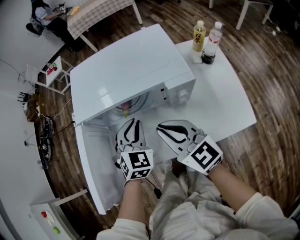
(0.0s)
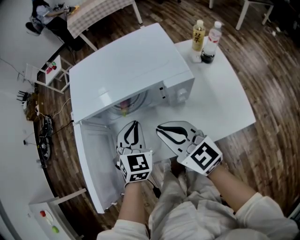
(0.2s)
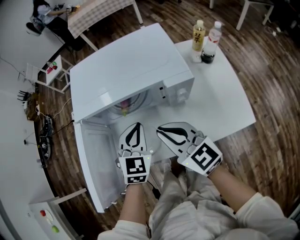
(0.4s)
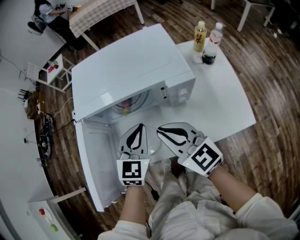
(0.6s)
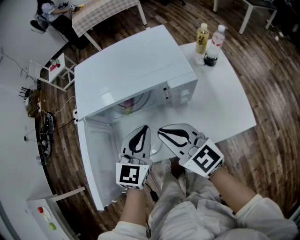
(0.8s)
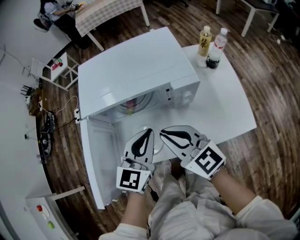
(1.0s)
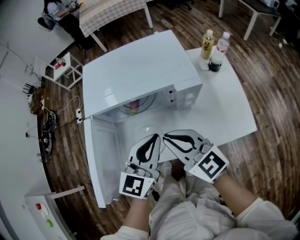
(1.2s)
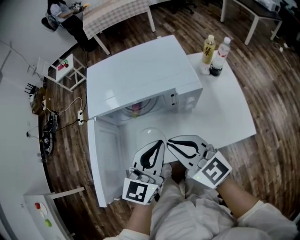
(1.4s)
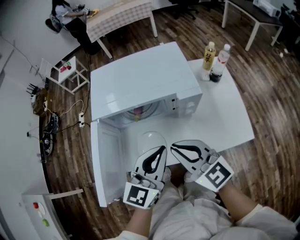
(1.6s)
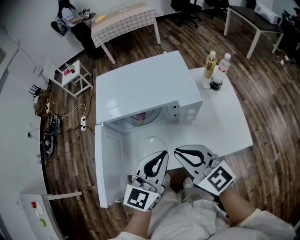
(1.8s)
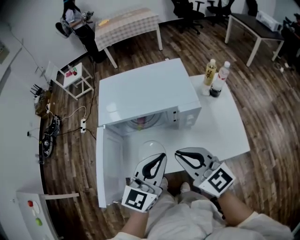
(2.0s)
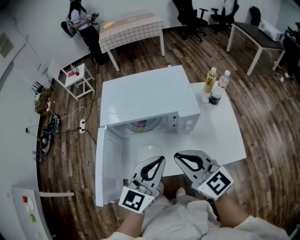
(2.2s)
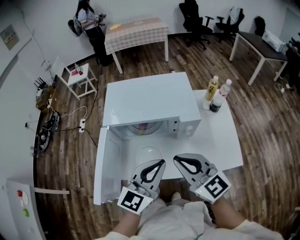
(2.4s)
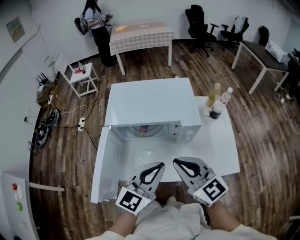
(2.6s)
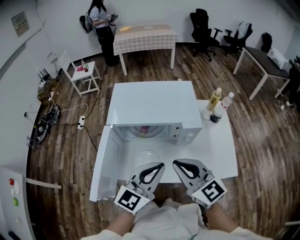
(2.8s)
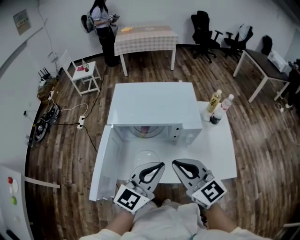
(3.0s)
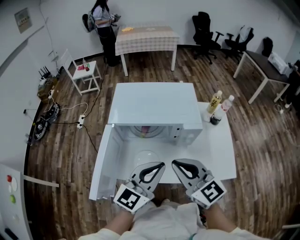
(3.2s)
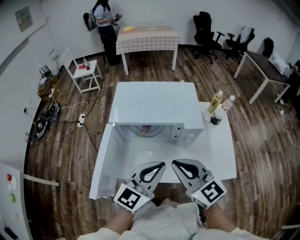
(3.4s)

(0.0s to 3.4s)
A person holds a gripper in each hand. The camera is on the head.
0.0s - 1.6s: The right gripper shifts approximately 5 cm backward. The left gripper goes approximately 15 cm backward and upward, and swivels about 40 degrees.
1.6s - 3.4s: The right gripper heads upward, covering about 5 cm. Meanwhile the left gripper changes place by approximately 5 cm.

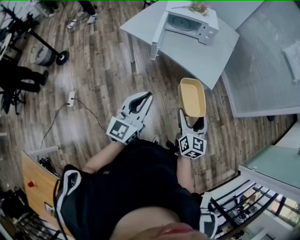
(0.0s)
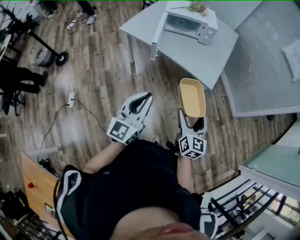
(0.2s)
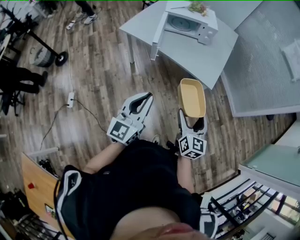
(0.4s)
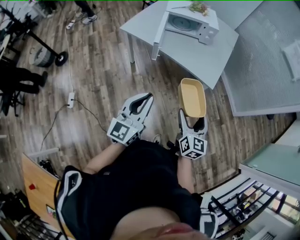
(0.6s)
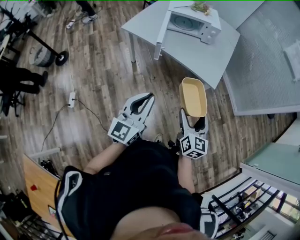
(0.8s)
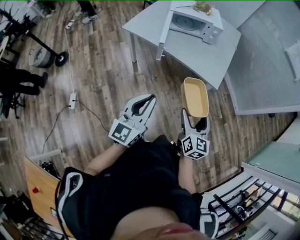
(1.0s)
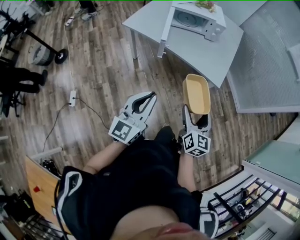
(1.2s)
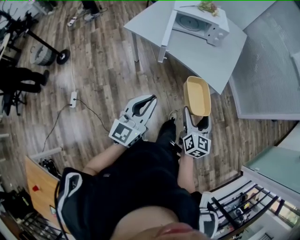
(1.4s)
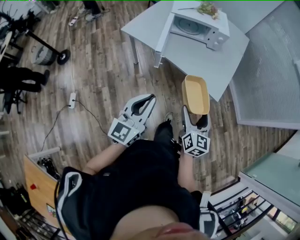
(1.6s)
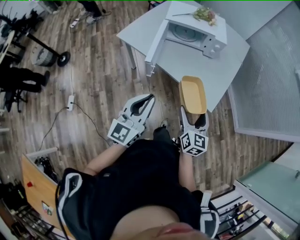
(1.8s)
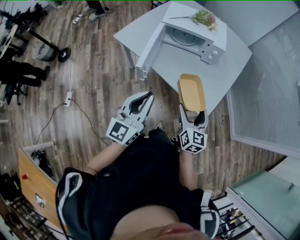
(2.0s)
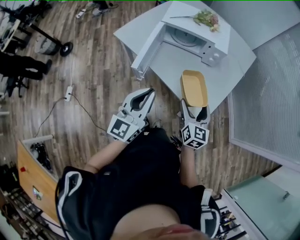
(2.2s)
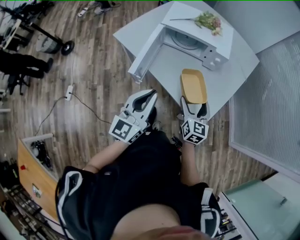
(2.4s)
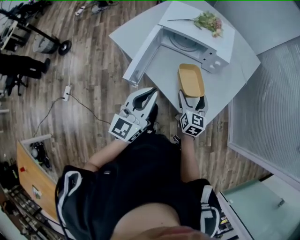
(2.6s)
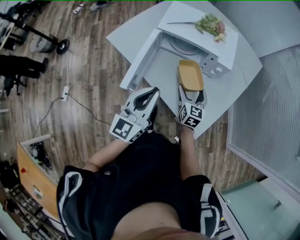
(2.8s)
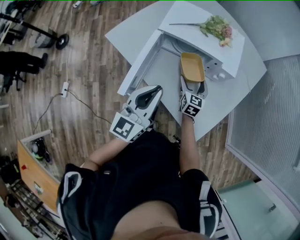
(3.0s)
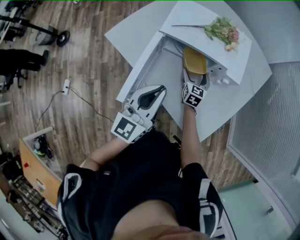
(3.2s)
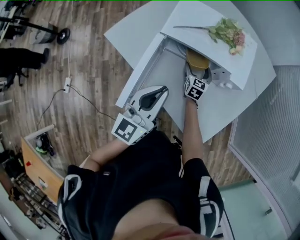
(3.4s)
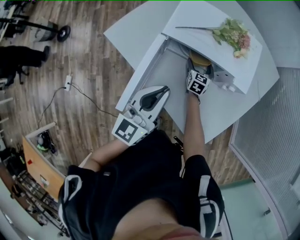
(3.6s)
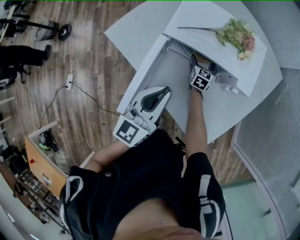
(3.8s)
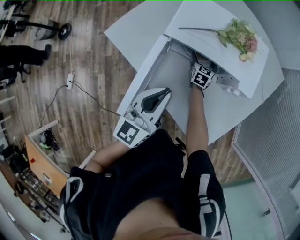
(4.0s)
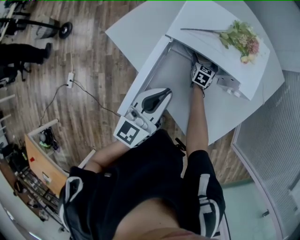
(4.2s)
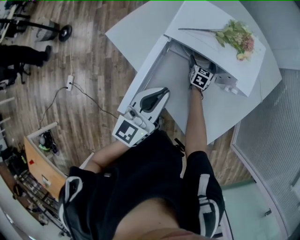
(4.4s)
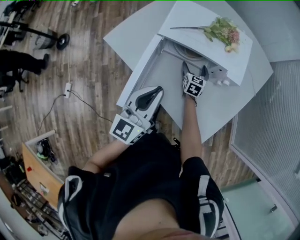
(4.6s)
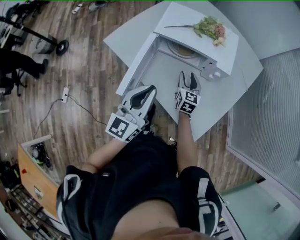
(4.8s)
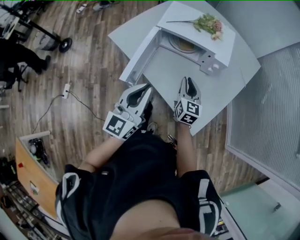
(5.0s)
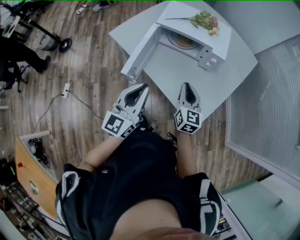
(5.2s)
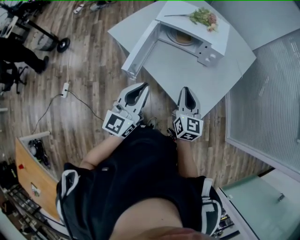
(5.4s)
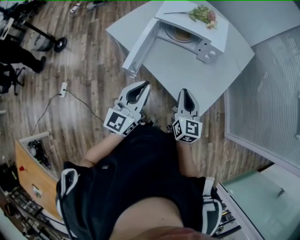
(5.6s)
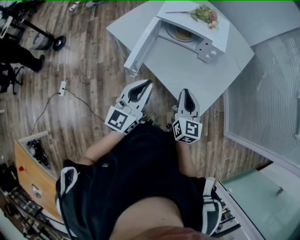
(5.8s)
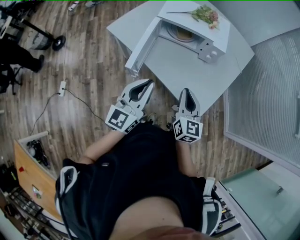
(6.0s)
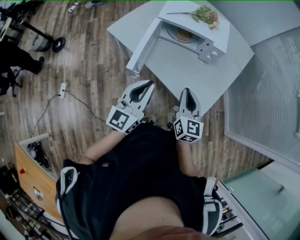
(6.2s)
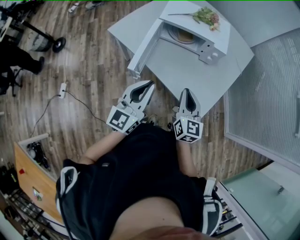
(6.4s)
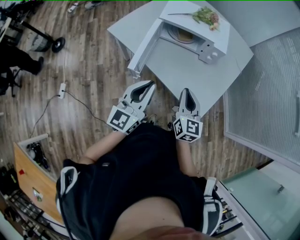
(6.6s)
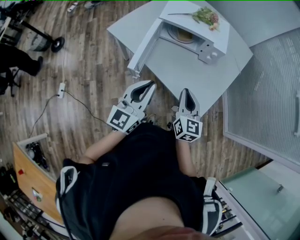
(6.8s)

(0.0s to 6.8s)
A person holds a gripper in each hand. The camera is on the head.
0.0s - 1.4s: The right gripper shifts roughly 10 cm forward and to the left, while the left gripper shifts roughly 5 cm to the left and forward.
1.4s - 2.8s: The two grippers travel together, forward, approximately 50 cm. The right gripper turns by roughly 20 degrees.
2.8s - 4.0s: The left gripper heads forward and downward, covering about 15 cm, while the right gripper is displaced forward and downward by about 35 cm.
4.0s - 5.4s: The right gripper heads backward and upward, covering roughly 50 cm, rotates about 30 degrees, and closes. Meanwhile the left gripper is displaced backward by some 25 cm.
5.4s - 6.8s: The grippers stay close to where they were, moving slightly.

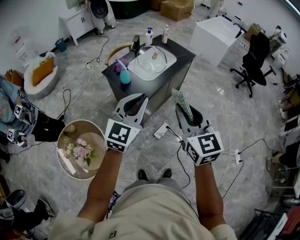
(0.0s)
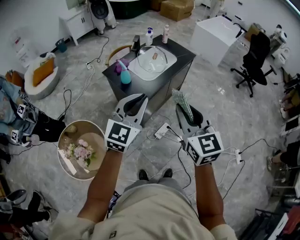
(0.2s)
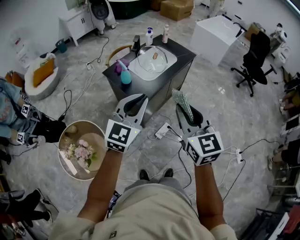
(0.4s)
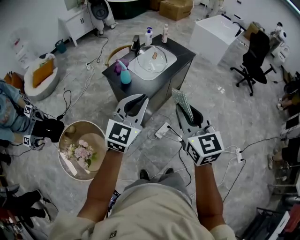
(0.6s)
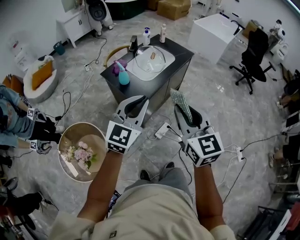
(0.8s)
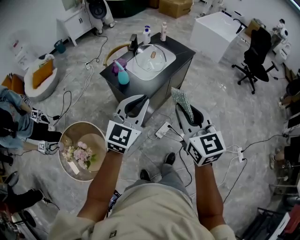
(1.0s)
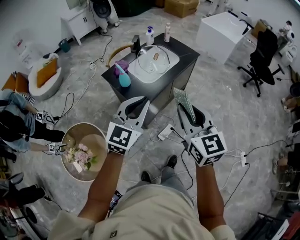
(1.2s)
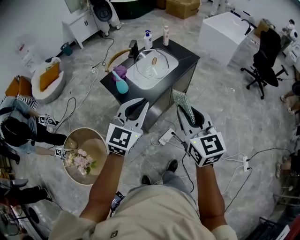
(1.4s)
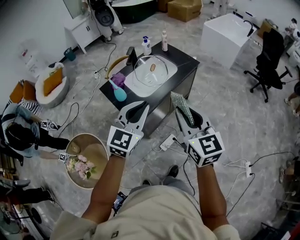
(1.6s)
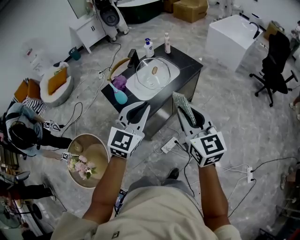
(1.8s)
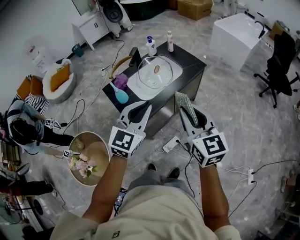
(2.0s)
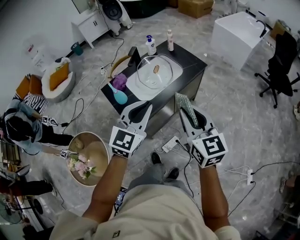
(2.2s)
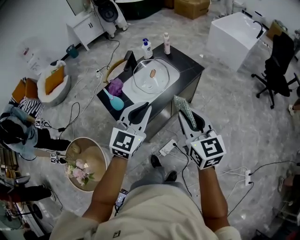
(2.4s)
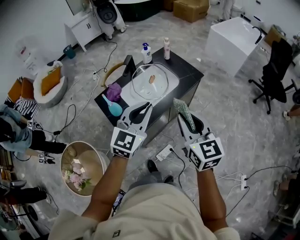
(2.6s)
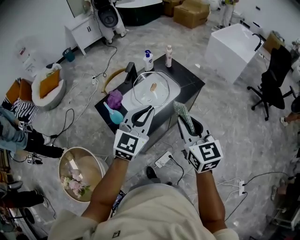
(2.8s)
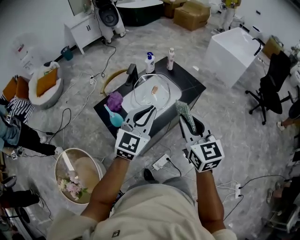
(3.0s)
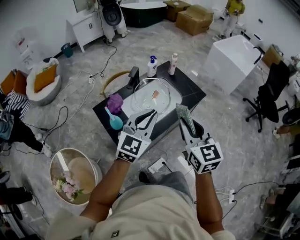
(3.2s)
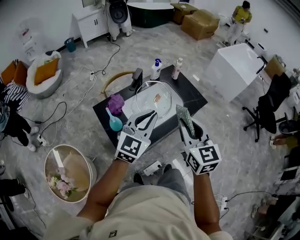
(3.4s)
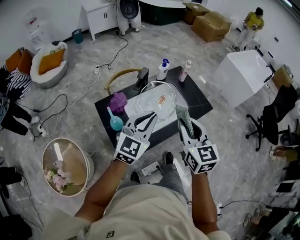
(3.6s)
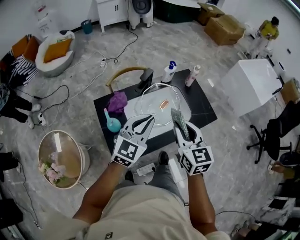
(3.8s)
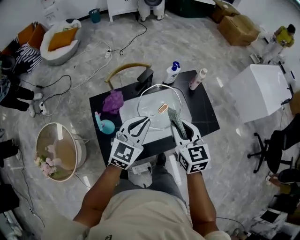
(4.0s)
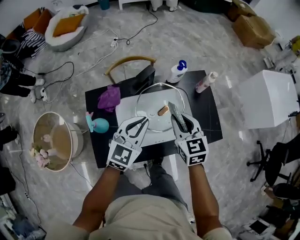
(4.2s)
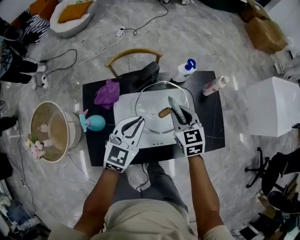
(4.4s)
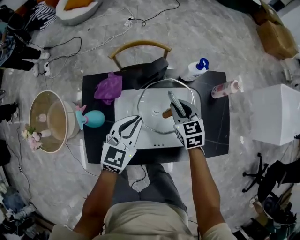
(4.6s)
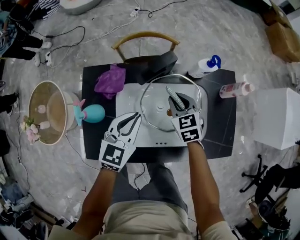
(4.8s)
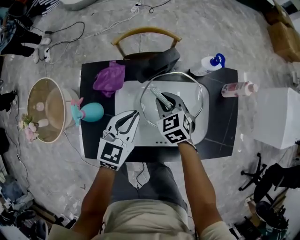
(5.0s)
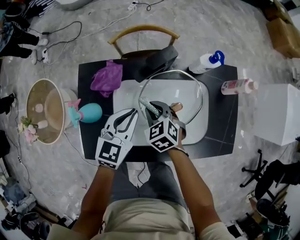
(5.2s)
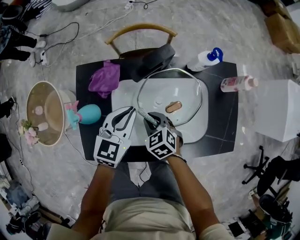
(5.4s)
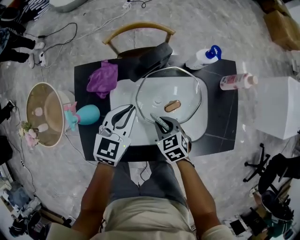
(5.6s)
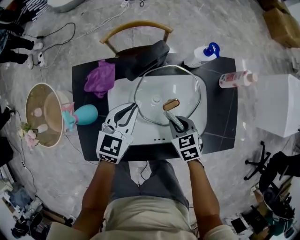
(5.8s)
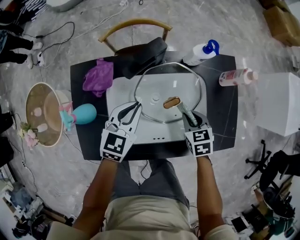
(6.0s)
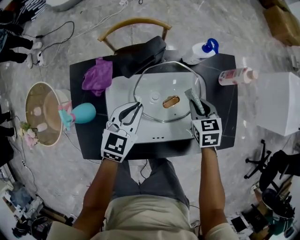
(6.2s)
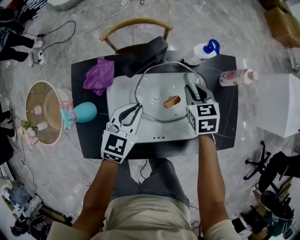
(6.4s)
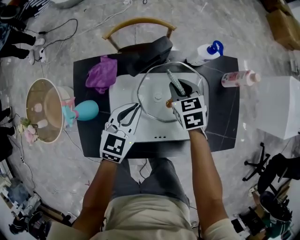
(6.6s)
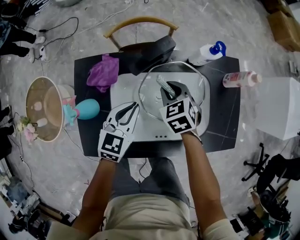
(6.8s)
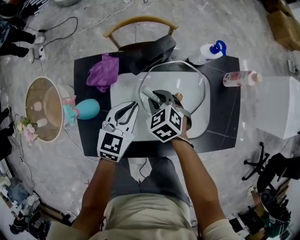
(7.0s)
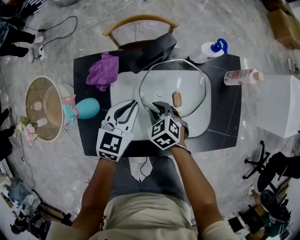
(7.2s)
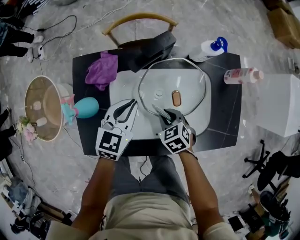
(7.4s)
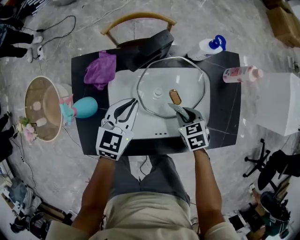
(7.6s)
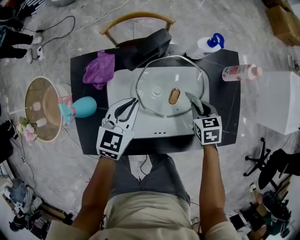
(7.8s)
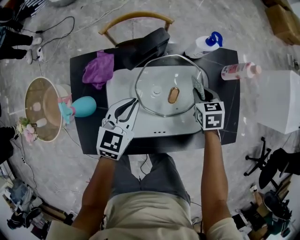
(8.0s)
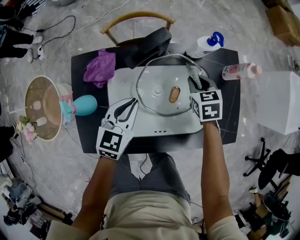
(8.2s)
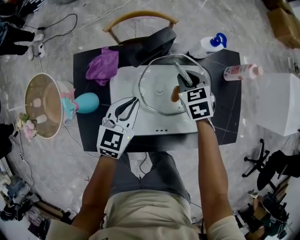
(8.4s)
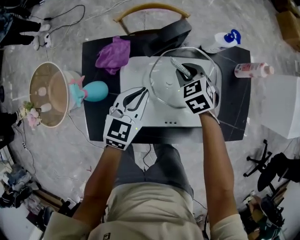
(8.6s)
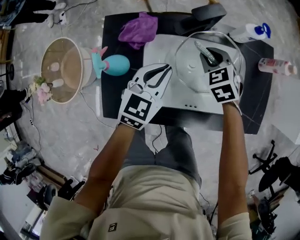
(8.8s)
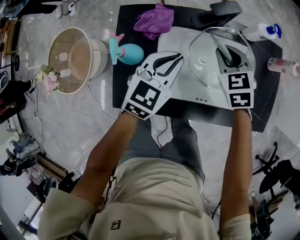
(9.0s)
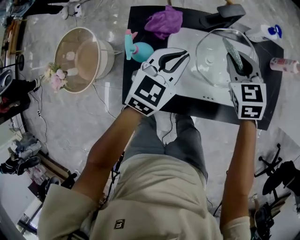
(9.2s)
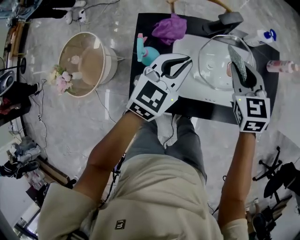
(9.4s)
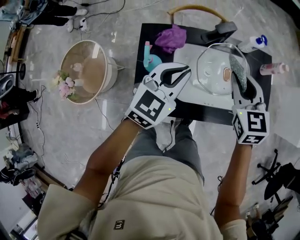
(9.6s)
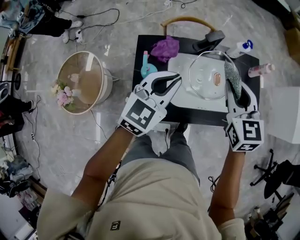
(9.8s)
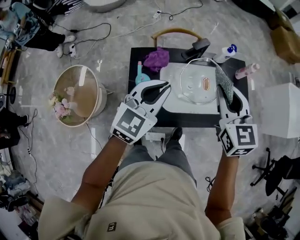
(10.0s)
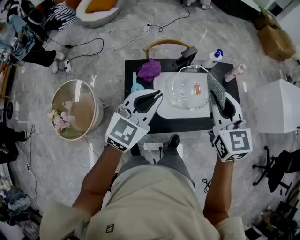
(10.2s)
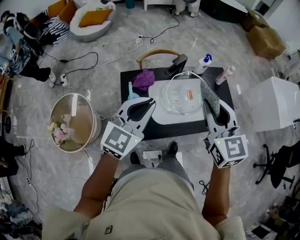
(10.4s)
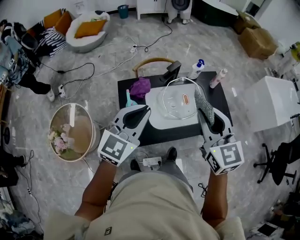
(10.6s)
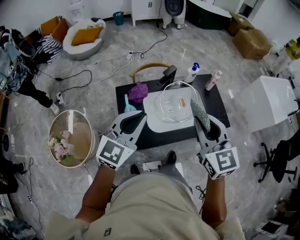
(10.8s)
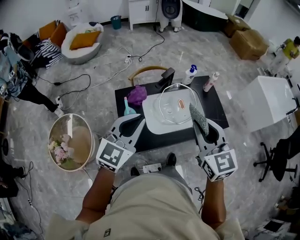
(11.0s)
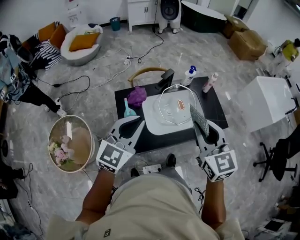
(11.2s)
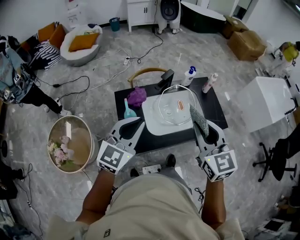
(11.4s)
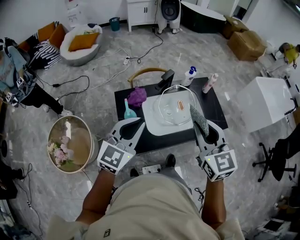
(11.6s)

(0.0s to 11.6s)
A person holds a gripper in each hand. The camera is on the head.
0.0s - 1.4s: Both grippers move forward and to the right, approximately 10 cm.
1.4s - 2.8s: Both grippers travel together forward, approximately 25 cm.
2.8s - 4.4s: The left gripper ends up approximately 35 cm from where it was, and turns by some 40 degrees. Meanwhile the right gripper changes place by roughly 50 cm, and swivels approximately 40 degrees.
4.4s - 5.8s: The left gripper shifts some 10 cm downward. The right gripper travels downward by some 15 cm, and swivels about 30 degrees.
5.8s - 7.2s: The right gripper goes about 10 cm to the left.
7.2s - 8.8s: The right gripper travels forward and upward by about 10 cm, and moves about 20 cm to the right and comes back.
8.8s - 10.2s: The grippers both shift upward and backward by approximately 35 cm. The right gripper angles its fingers upward, by about 40 degrees; the left gripper changes its angle by approximately 20 degrees.
10.2s - 11.6s: The left gripper travels backward by approximately 5 cm. Meanwhile the right gripper goes approximately 10 cm backward.

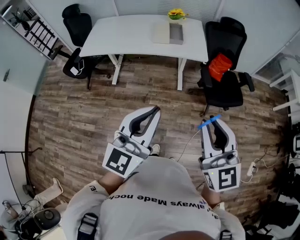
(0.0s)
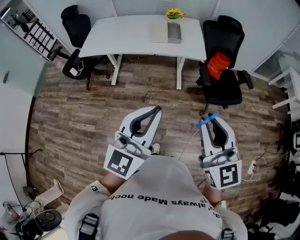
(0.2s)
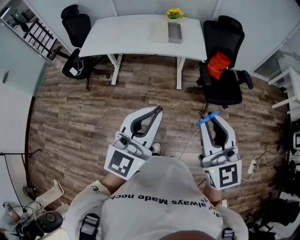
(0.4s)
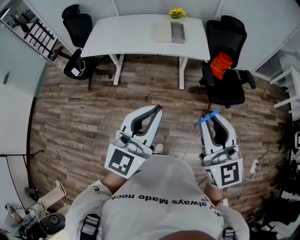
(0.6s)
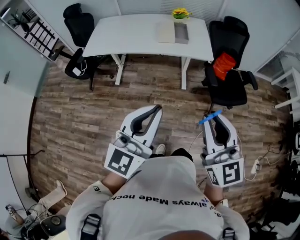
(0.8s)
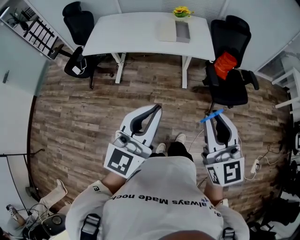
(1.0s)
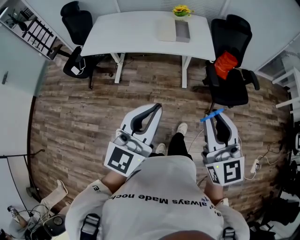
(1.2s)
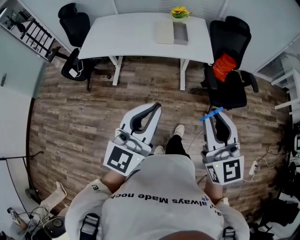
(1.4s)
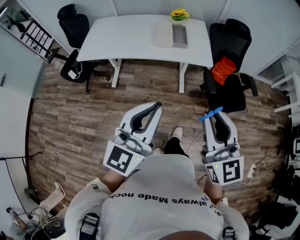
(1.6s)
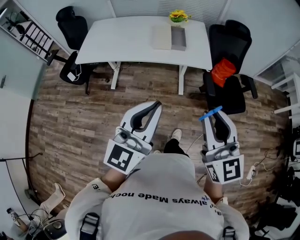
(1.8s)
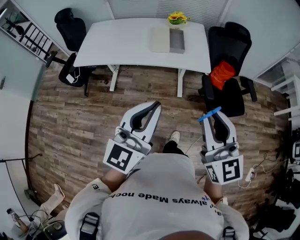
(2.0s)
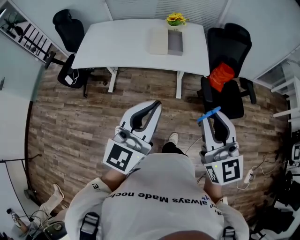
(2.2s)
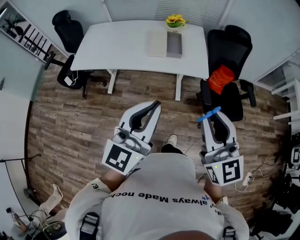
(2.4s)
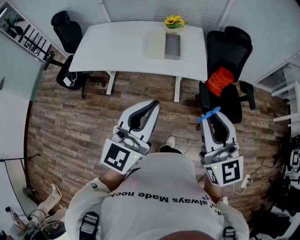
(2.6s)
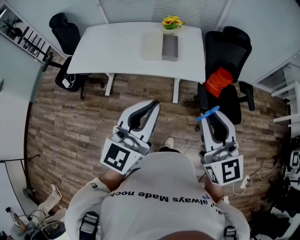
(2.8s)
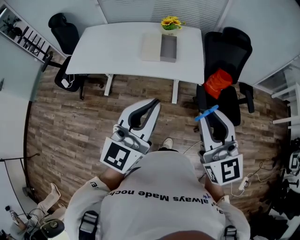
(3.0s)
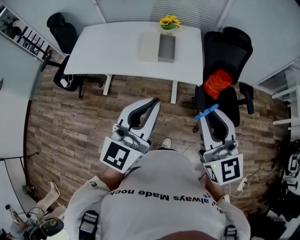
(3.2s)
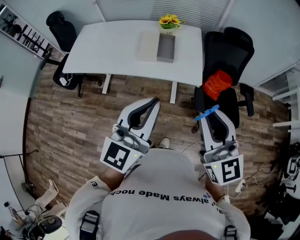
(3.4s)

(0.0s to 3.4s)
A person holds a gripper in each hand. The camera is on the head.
0.0s - 1.6s: The grippers both shift forward by about 10 cm.
1.6s - 3.4s: Both grippers move forward and to the right, roughly 25 cm.
